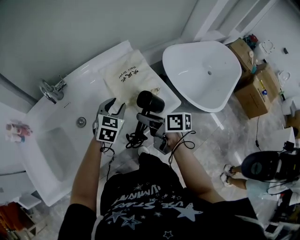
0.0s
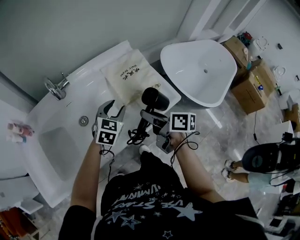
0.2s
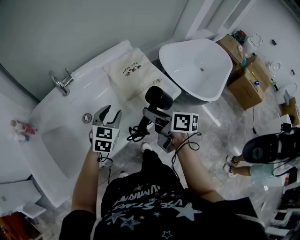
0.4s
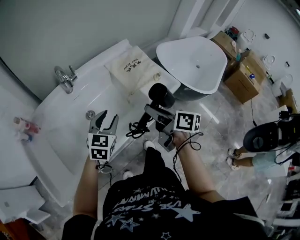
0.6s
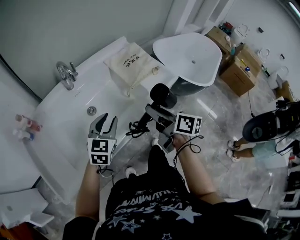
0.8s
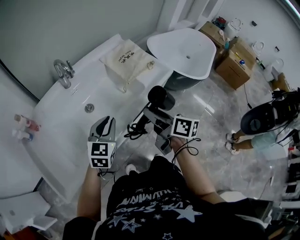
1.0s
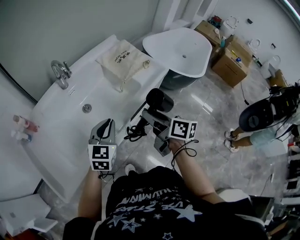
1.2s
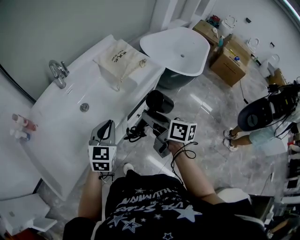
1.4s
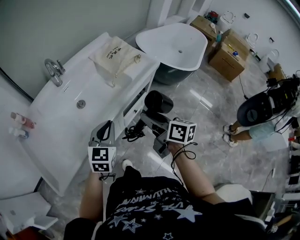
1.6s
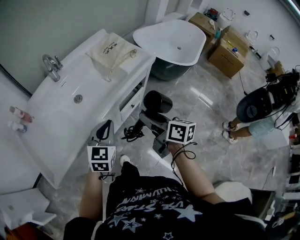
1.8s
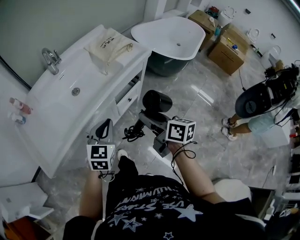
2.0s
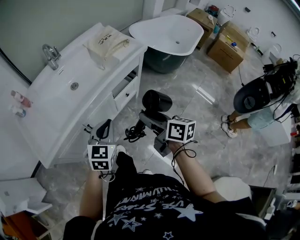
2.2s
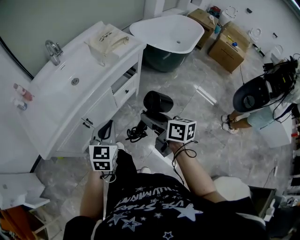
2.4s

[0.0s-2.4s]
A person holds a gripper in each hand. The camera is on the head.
0.0s to 1.2s: The left gripper goes about 30 cm backward and to the left, and closes. Meanwhile the right gripper heads backward, covering about 20 cm, and turns by approximately 30 degrees.
1.2s to 2.4s: Both grippers move backward and to the right, approximately 15 cm.

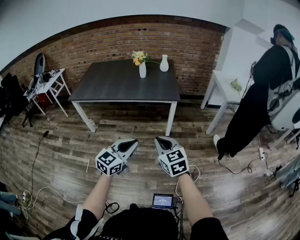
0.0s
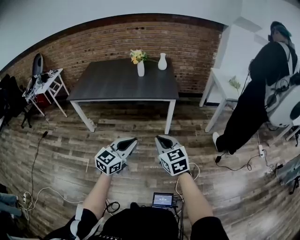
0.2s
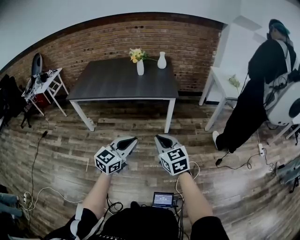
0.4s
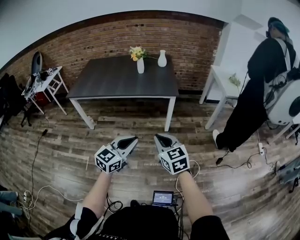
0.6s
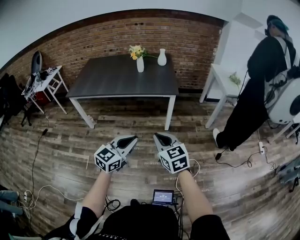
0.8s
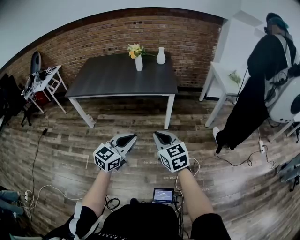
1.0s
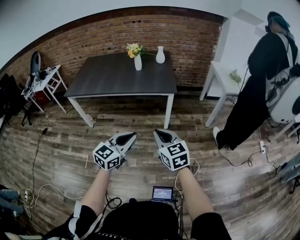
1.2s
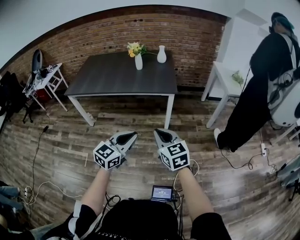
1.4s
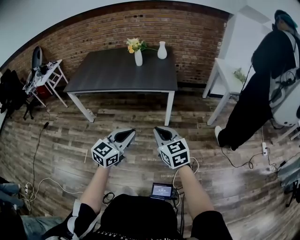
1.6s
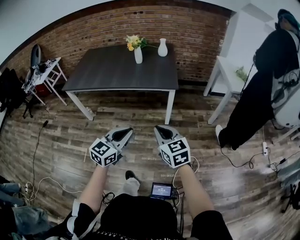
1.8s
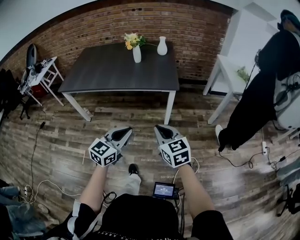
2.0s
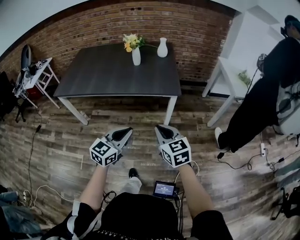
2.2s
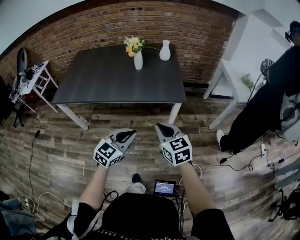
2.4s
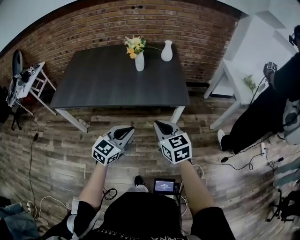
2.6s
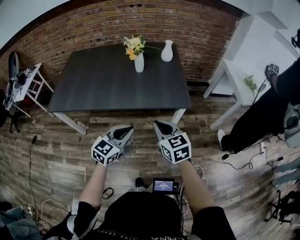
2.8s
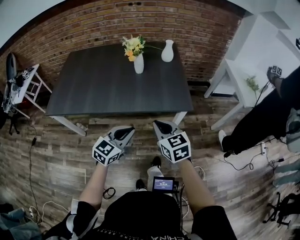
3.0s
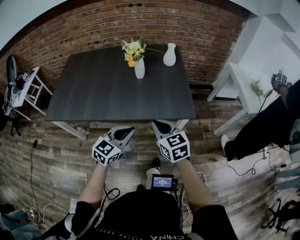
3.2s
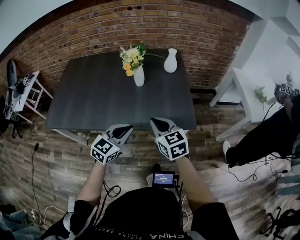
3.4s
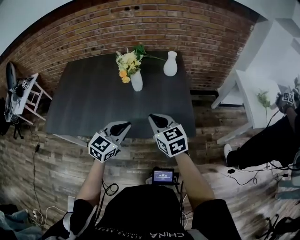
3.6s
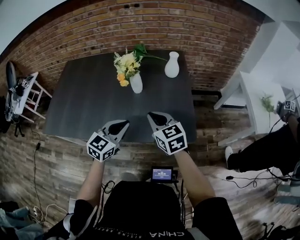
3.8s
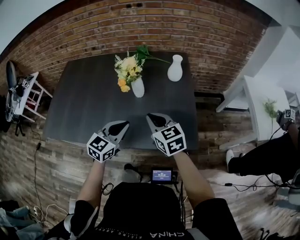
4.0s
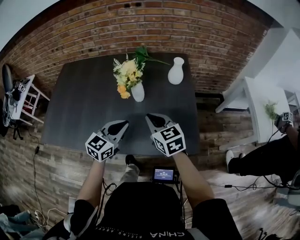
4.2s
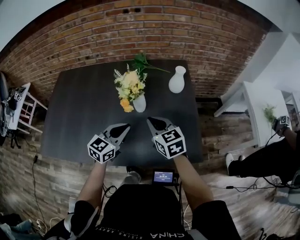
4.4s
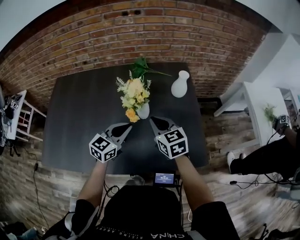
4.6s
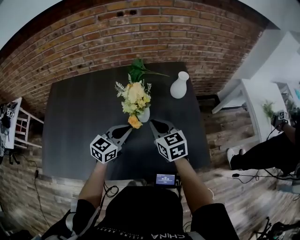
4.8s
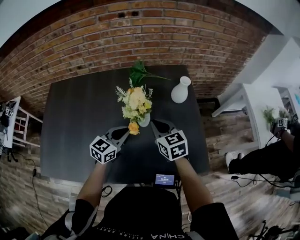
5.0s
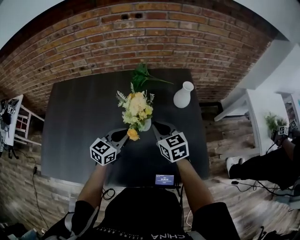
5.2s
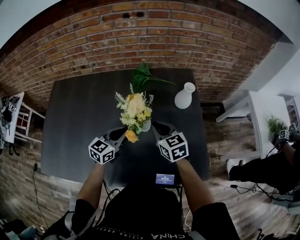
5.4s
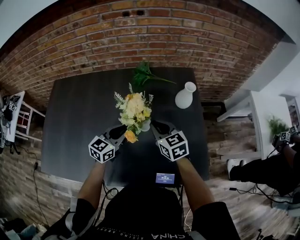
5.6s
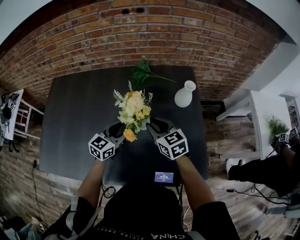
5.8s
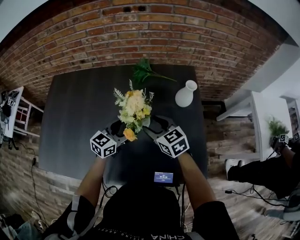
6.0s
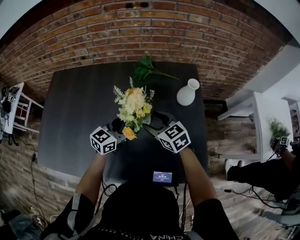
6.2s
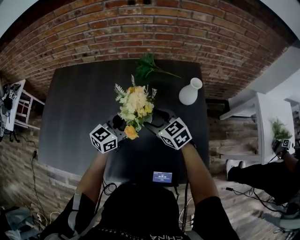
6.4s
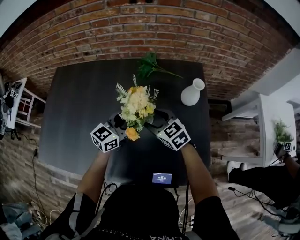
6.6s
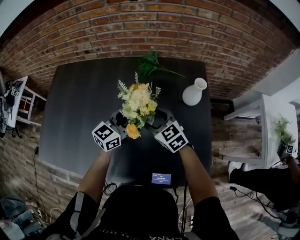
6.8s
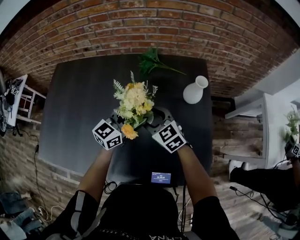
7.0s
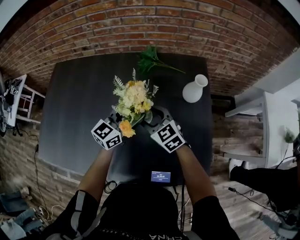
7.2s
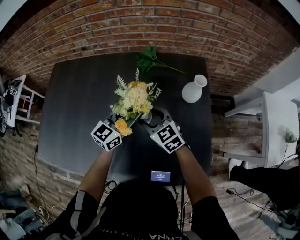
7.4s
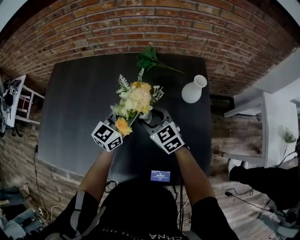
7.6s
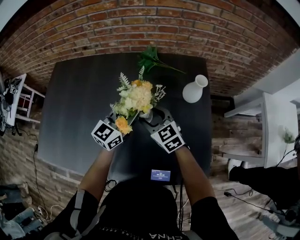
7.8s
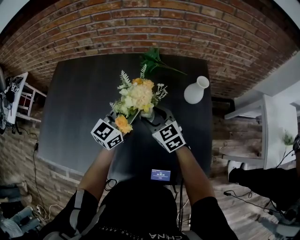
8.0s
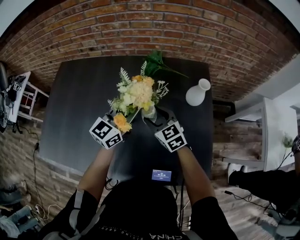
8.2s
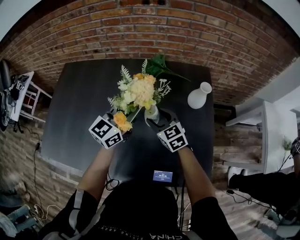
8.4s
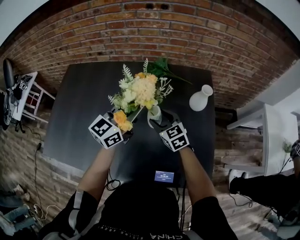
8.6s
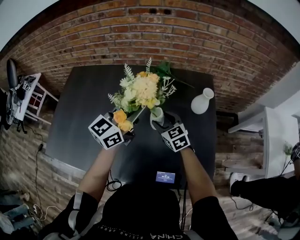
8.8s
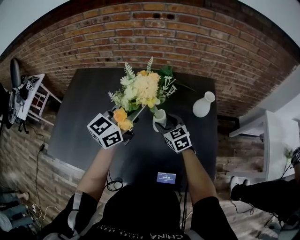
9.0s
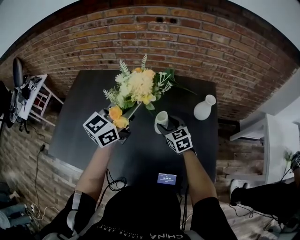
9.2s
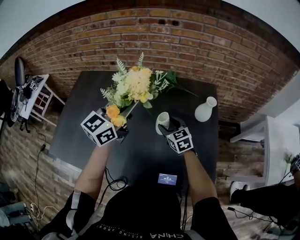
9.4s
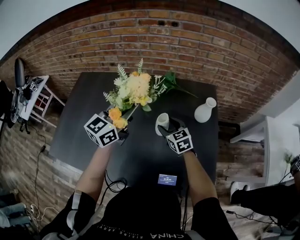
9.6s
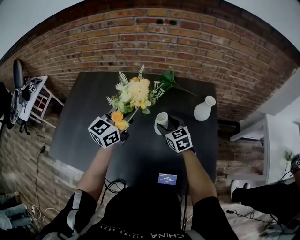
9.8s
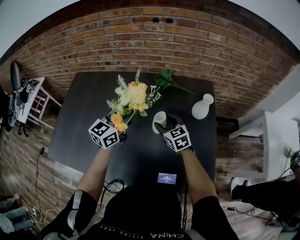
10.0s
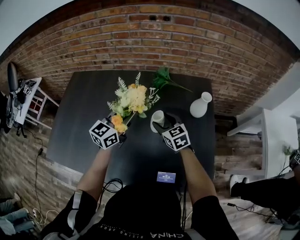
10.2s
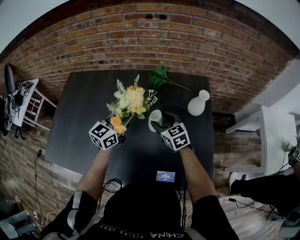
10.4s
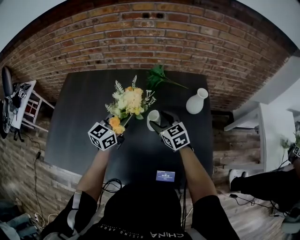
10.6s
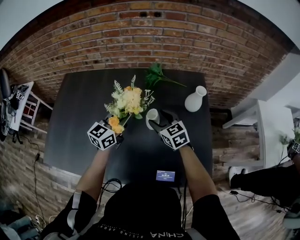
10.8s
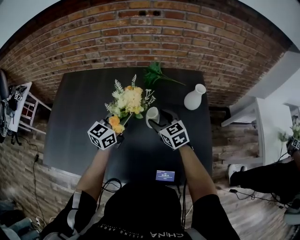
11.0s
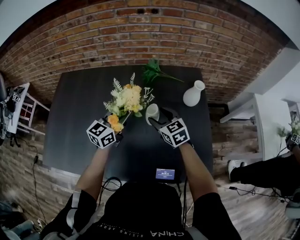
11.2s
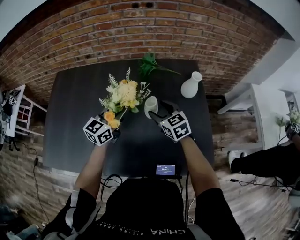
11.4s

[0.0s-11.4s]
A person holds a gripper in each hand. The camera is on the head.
0.0s to 1.4s: The left gripper changes place by approximately 5 cm, while the right gripper shifts by roughly 5 cm.
1.4s to 2.8s: The grippers both shift forward and to the left by roughly 35 cm.
2.8s to 4.2s: The grippers both shift forward by roughly 35 cm.
4.2s to 5.6s: The left gripper is displaced forward and to the left by about 20 cm; the right gripper goes roughly 15 cm forward.
5.6s to 7.2s: The left gripper shifts approximately 5 cm forward and to the right, and opens up; the right gripper ends up some 5 cm from where it was, rotates approximately 20 degrees, and opens its fingers.
7.2s to 8.6s: The left gripper shifts roughly 10 cm upward, and closes.
8.6s to 10.0s: The left gripper goes approximately 5 cm to the left, and reaches approximately 10 cm upward, then returns.
10.0s to 11.4s: The left gripper shifts some 5 cm downward.

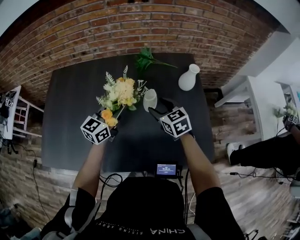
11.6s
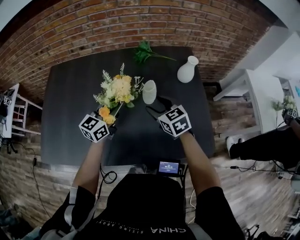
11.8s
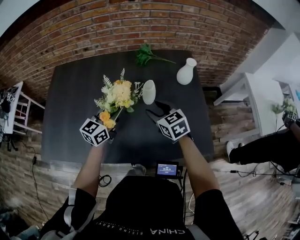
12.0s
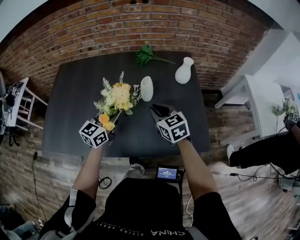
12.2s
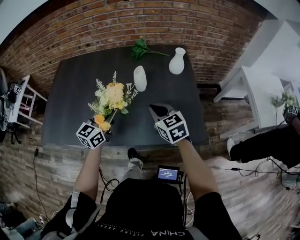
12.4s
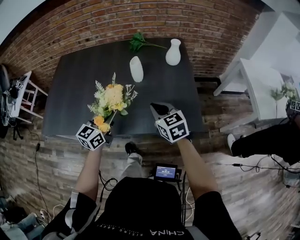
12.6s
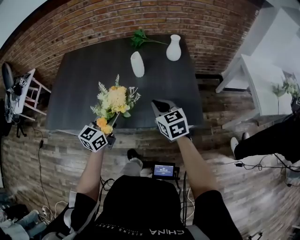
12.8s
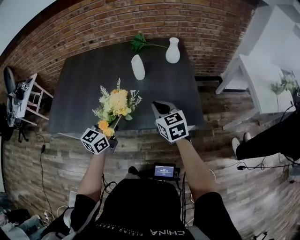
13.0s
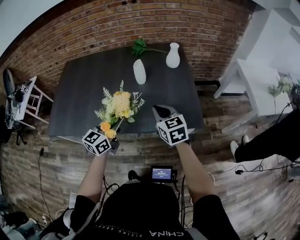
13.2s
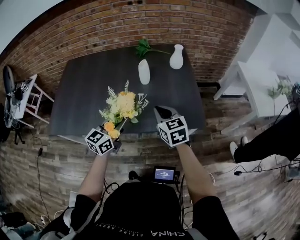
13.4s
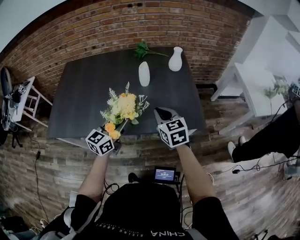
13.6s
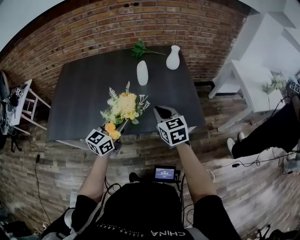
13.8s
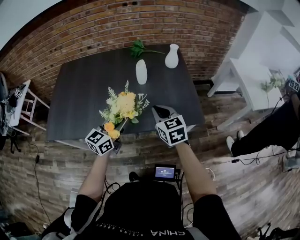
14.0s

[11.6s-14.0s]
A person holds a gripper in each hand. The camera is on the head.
11.6s to 12.8s: Both grippers travel together backward, roughly 25 cm. The right gripper closes.
12.8s to 14.0s: The right gripper moves about 5 cm.

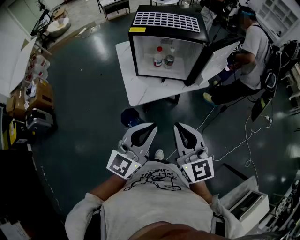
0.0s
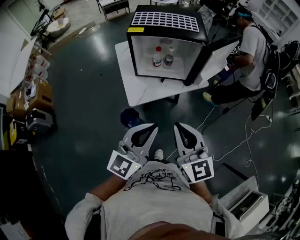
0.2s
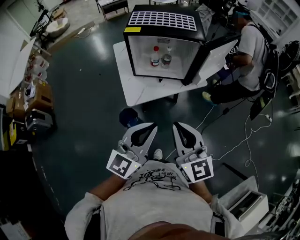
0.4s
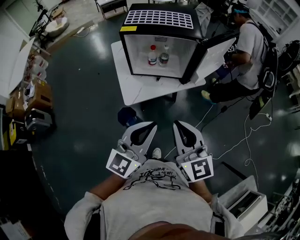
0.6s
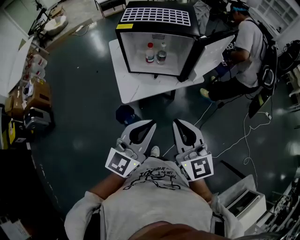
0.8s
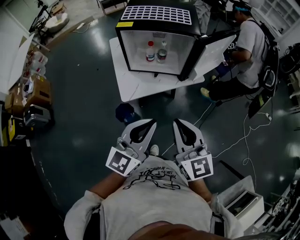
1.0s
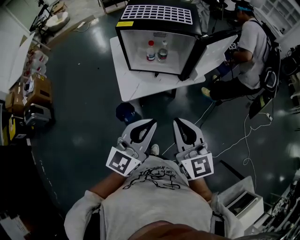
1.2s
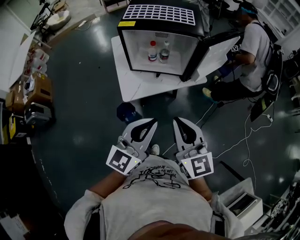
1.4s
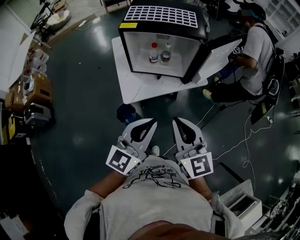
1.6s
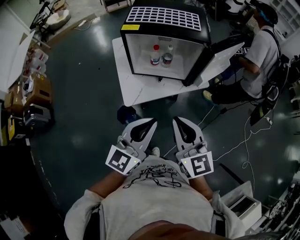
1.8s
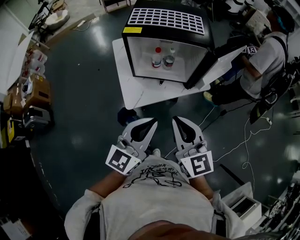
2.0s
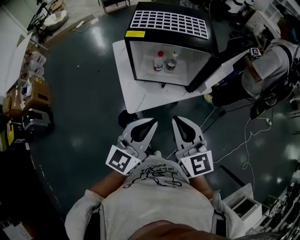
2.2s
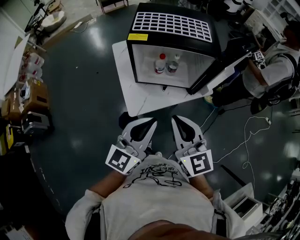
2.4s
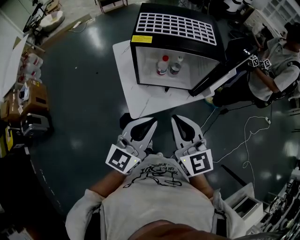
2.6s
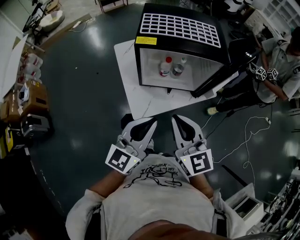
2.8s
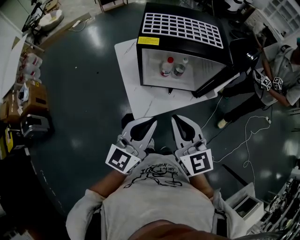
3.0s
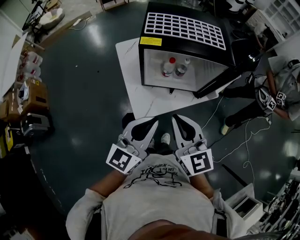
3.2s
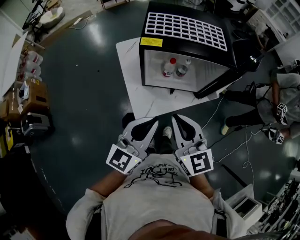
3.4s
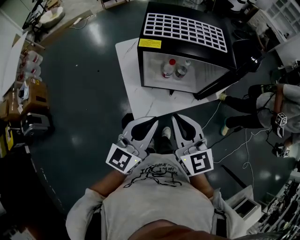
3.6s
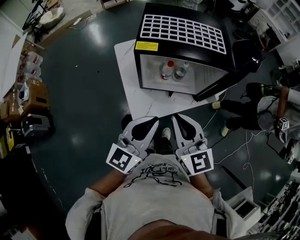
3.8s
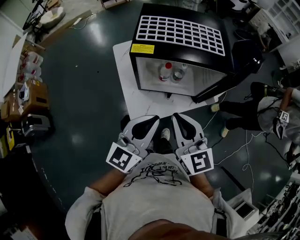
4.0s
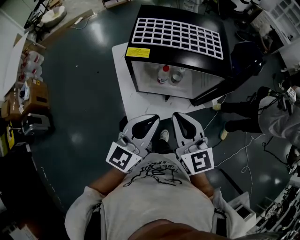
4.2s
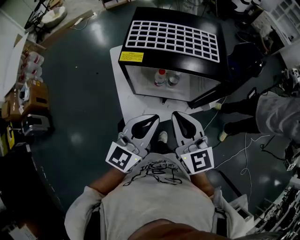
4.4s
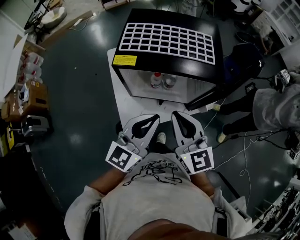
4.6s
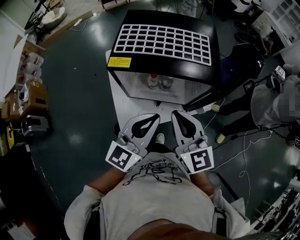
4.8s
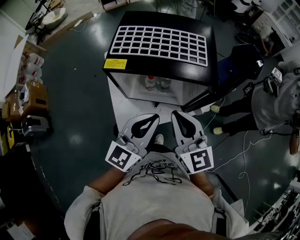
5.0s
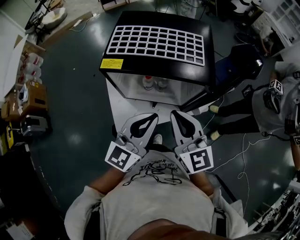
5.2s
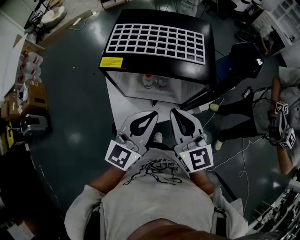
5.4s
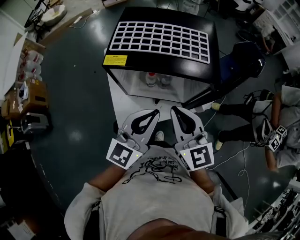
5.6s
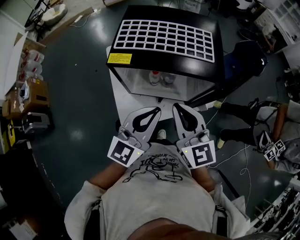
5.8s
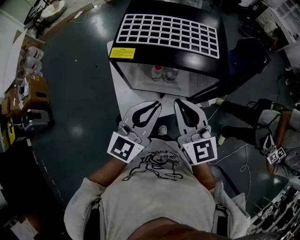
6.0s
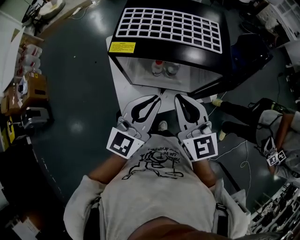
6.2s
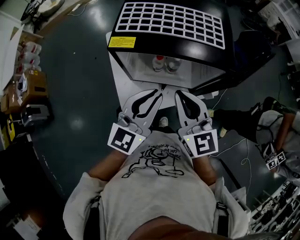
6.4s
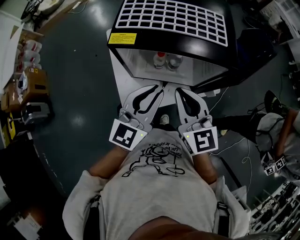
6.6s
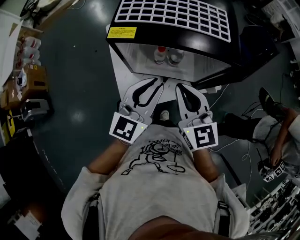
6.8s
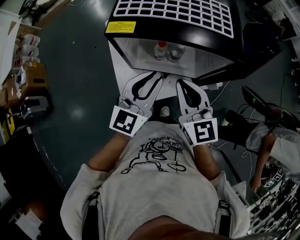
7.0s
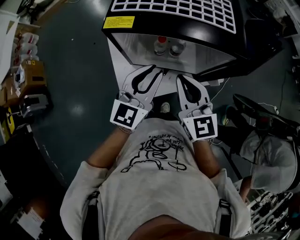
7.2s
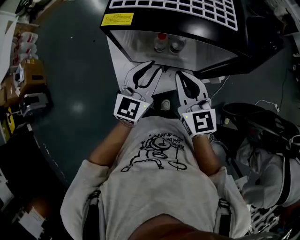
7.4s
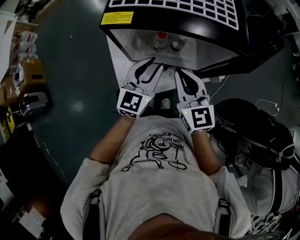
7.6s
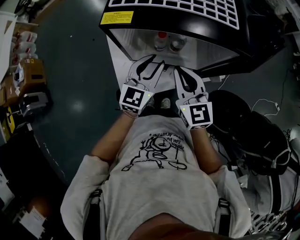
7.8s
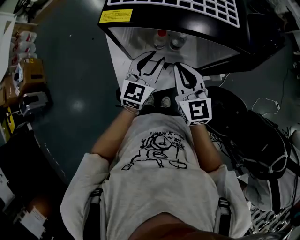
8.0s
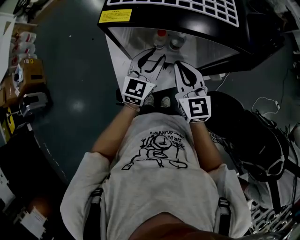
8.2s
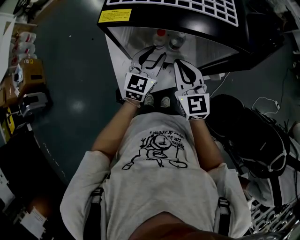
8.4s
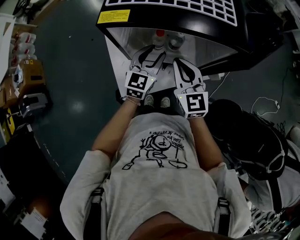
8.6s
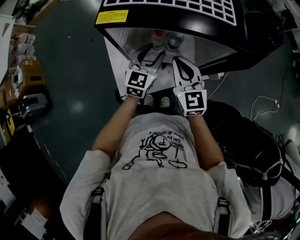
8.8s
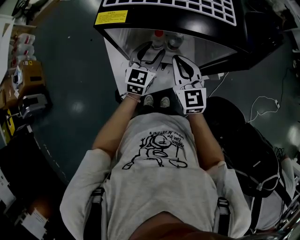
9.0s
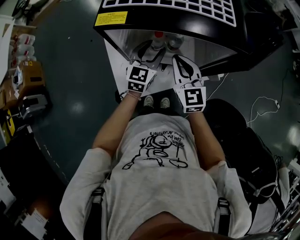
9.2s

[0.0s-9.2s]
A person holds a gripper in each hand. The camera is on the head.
0.0s to 1.6s: Both grippers travel together forward, some 5 cm.
1.6s to 3.0s: Both grippers travel together to the left and forward, roughly 20 cm.
3.0s to 4.6s: Both grippers move forward and to the right, about 15 cm.
4.6s to 6.2s: The grippers make only small movements.
6.2s to 7.6s: The left gripper goes about 15 cm downward and forward, while the right gripper heads downward, covering about 10 cm.
7.6s to 9.2s: The left gripper heads forward and downward, covering roughly 10 cm, and opens its fingers. The right gripper goes roughly 5 cm forward.
